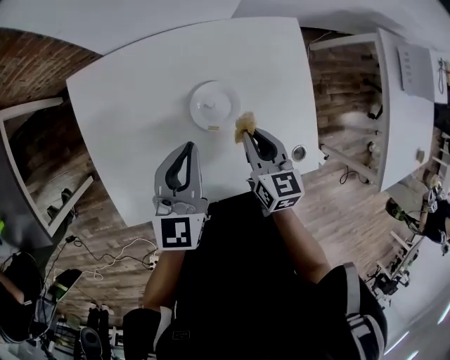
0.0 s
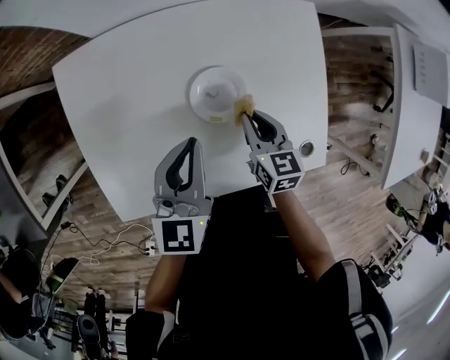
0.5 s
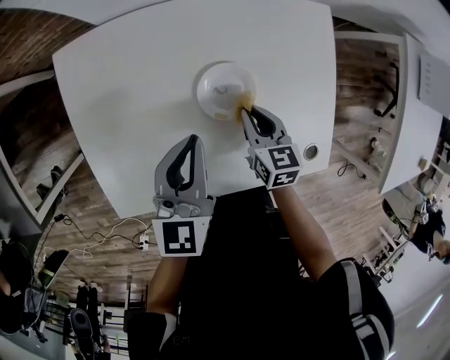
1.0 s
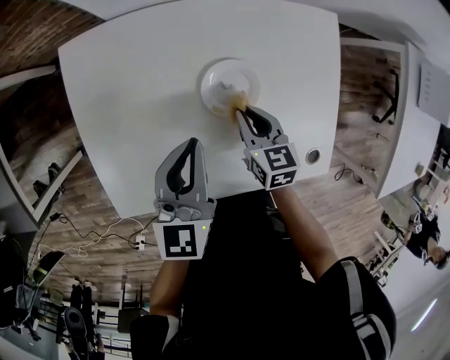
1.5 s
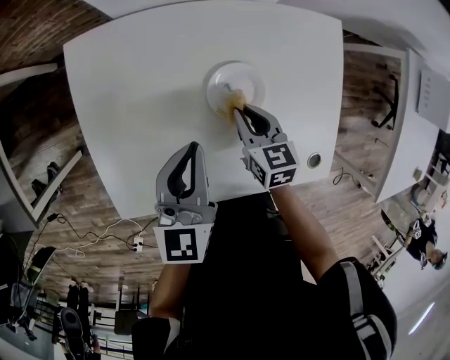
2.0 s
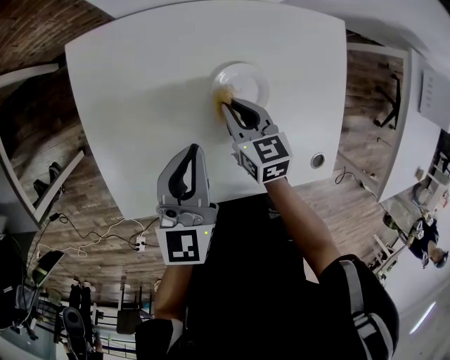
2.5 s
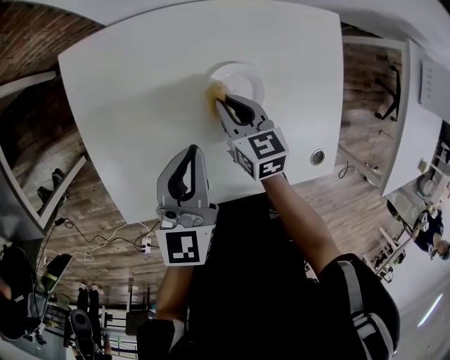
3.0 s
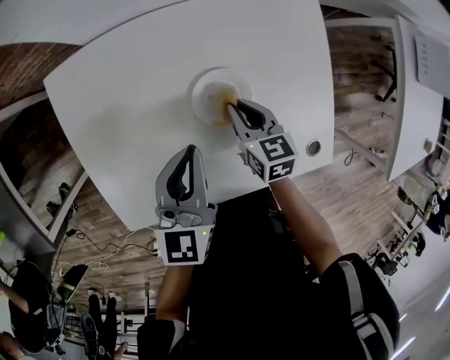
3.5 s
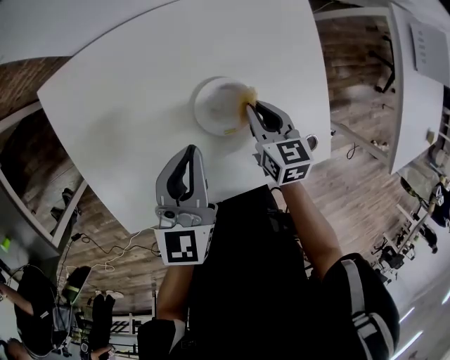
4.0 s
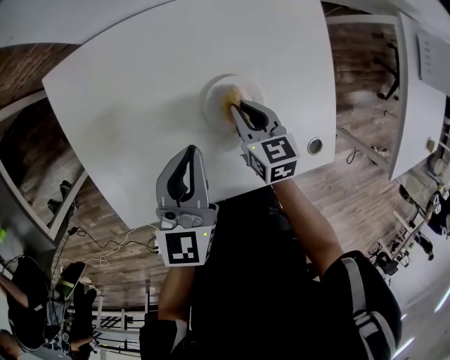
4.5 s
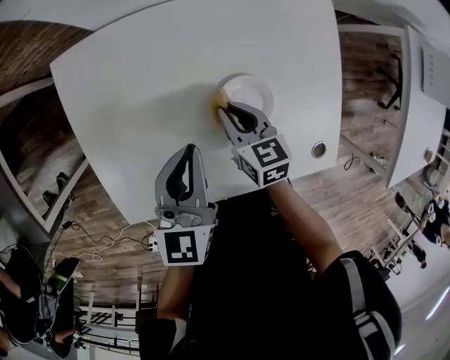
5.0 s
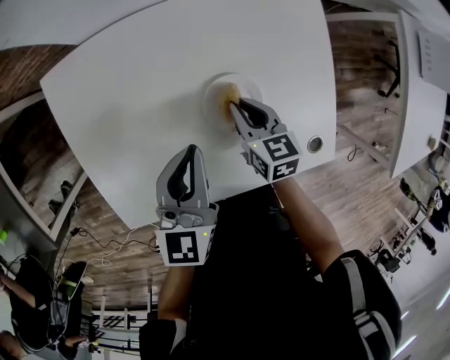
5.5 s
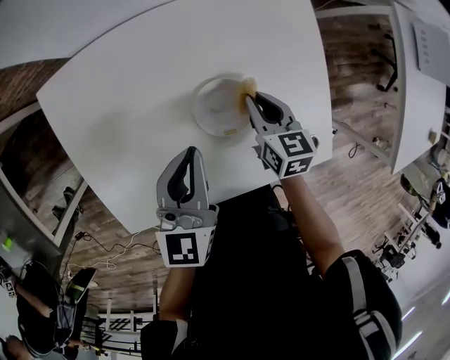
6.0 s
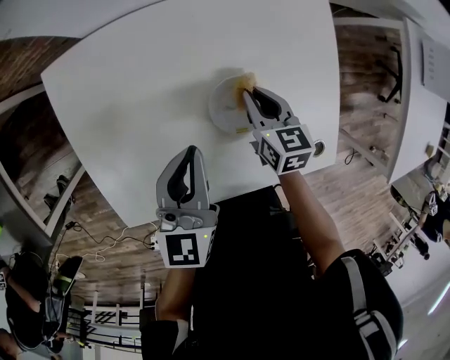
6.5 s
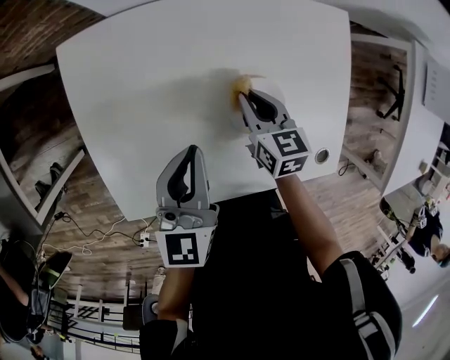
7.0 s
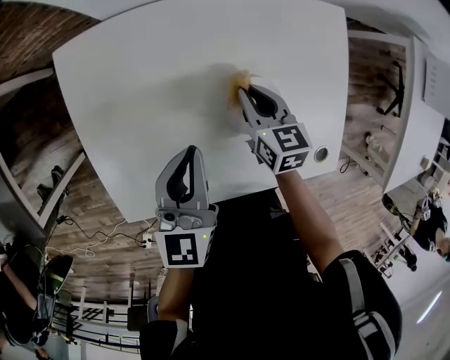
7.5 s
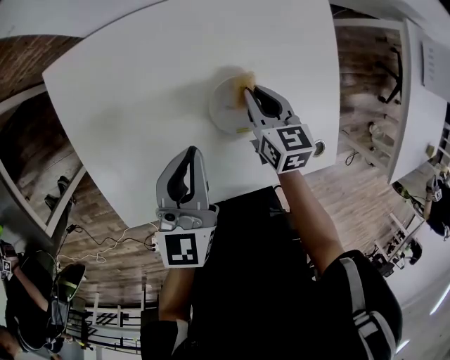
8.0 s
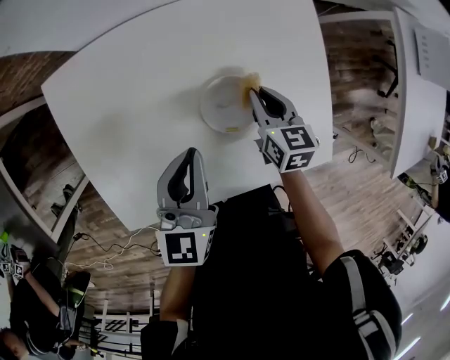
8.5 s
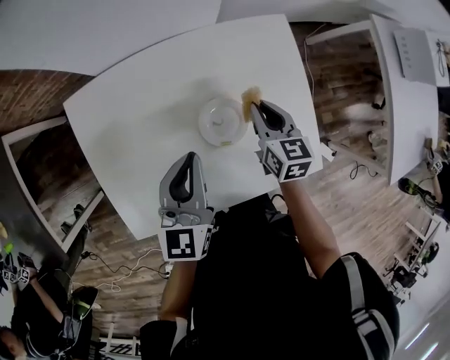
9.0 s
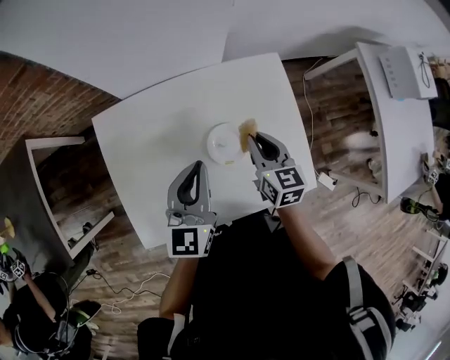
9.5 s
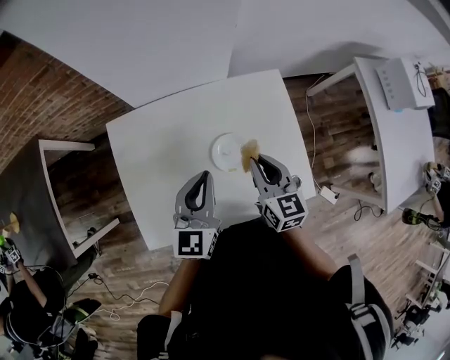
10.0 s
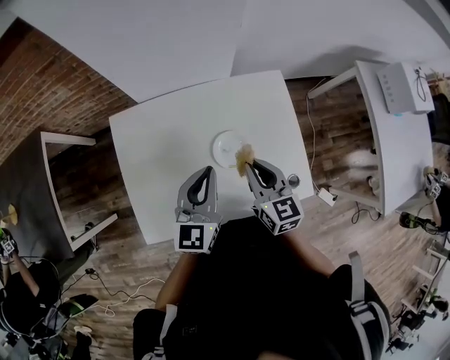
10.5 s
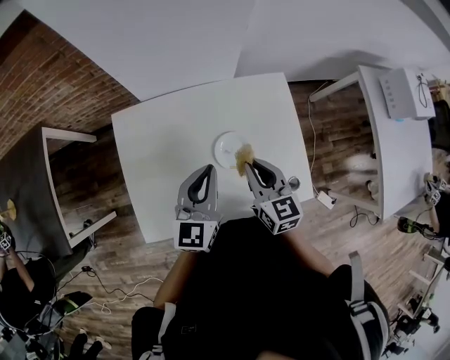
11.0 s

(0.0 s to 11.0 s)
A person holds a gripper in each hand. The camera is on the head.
0.0 s - 2.0 s: The left gripper ends up approximately 5 cm from where it was. The right gripper is displaced downward and to the left by approximately 10 cm.
2.0 s - 3.5 s: The grippers move only a little.
3.5 s - 5.5 s: The right gripper swings left and right, about 10 cm each way, with 2 reversals.
5.5 s - 7.5 s: The right gripper travels to the right and back again, some 5 cm each way. The left gripper is displaced to the left by roughly 5 cm.
7.5 s - 9.0 s: The left gripper goes about 10 cm to the right and upward. The right gripper shifts some 15 cm to the right and upward.
9.0 s - 11.0 s: The left gripper travels upward by about 10 cm. Meanwhile the right gripper heads upward, backward and to the left, covering approximately 20 cm.

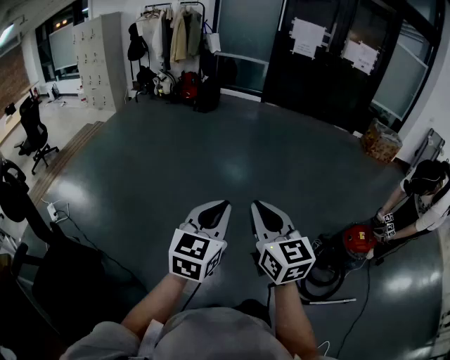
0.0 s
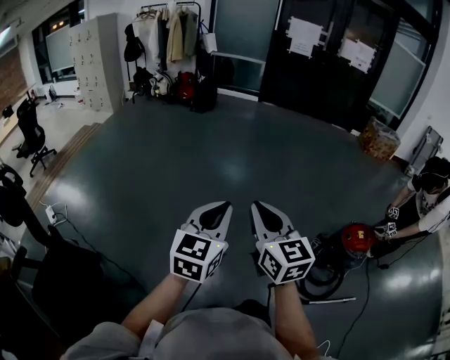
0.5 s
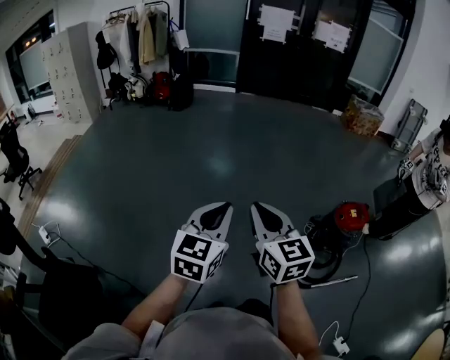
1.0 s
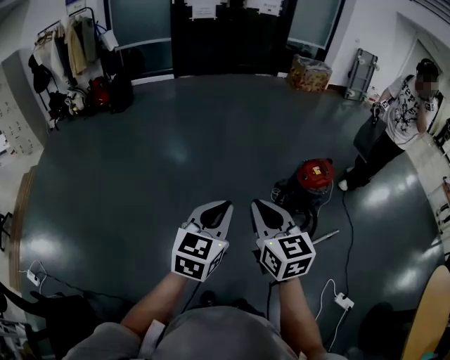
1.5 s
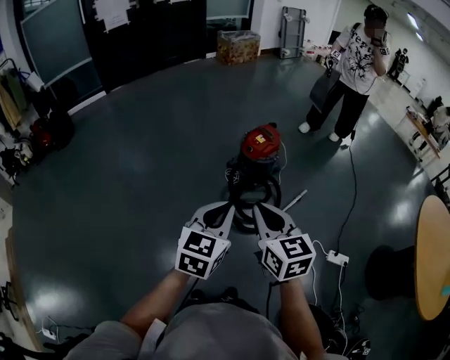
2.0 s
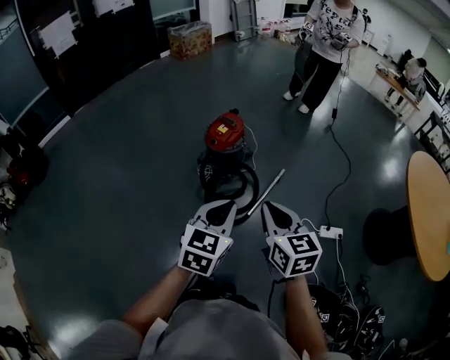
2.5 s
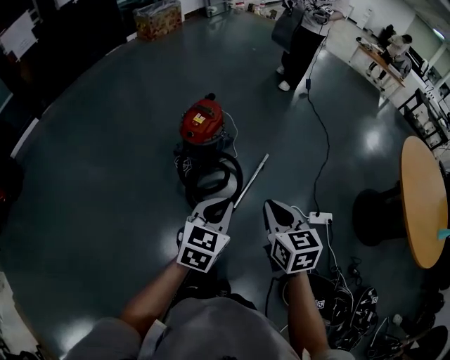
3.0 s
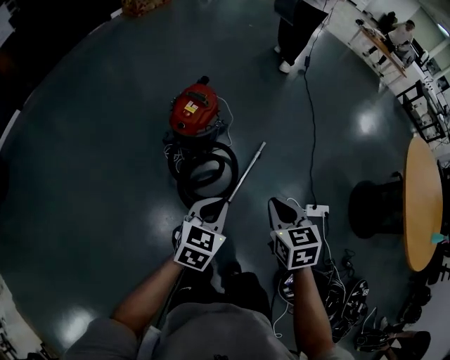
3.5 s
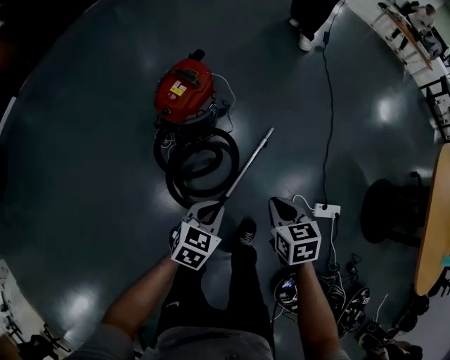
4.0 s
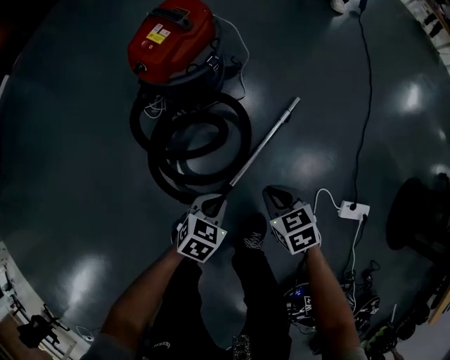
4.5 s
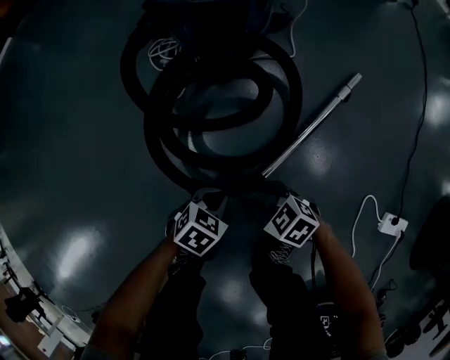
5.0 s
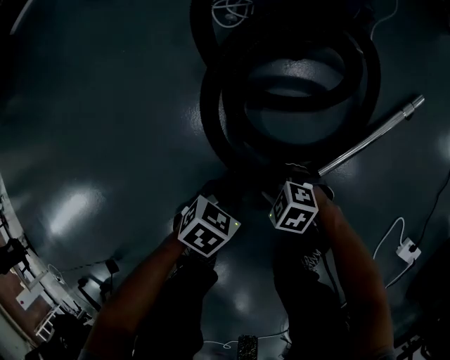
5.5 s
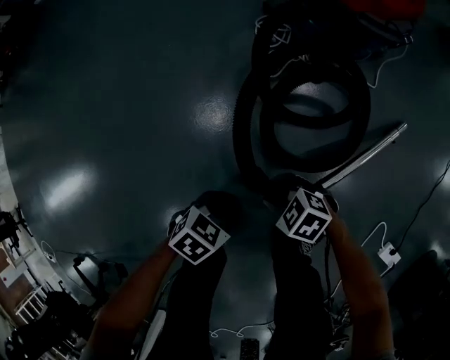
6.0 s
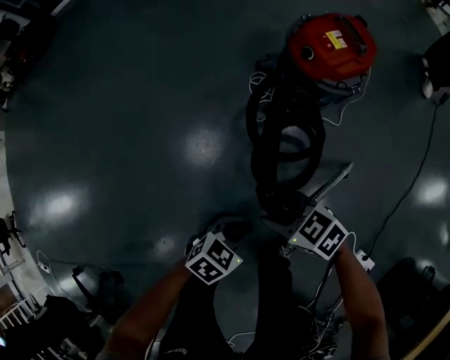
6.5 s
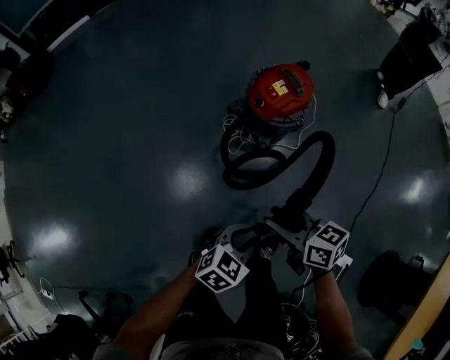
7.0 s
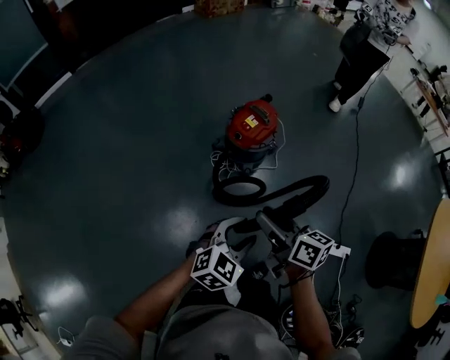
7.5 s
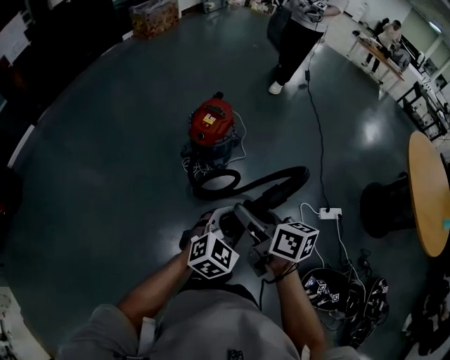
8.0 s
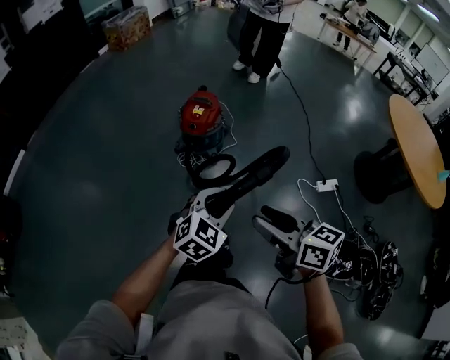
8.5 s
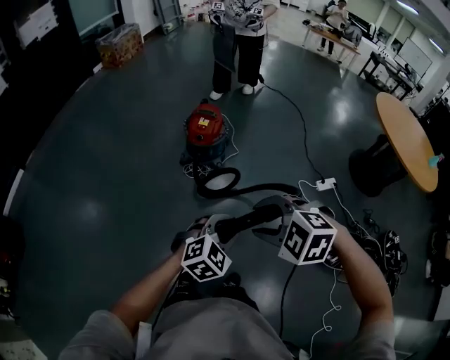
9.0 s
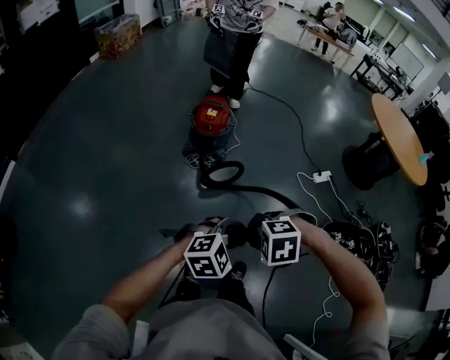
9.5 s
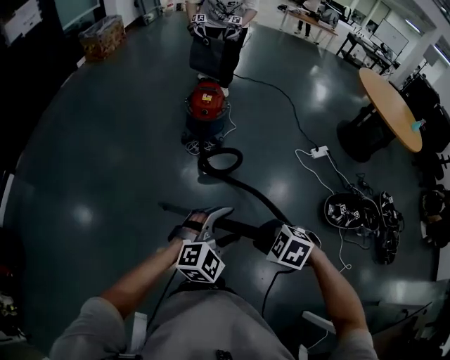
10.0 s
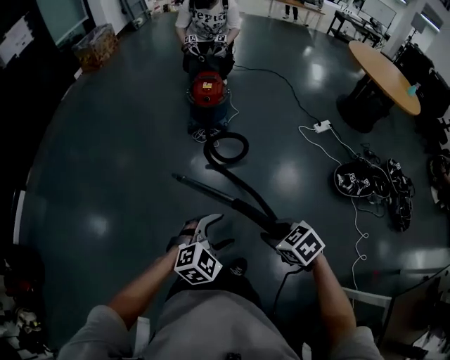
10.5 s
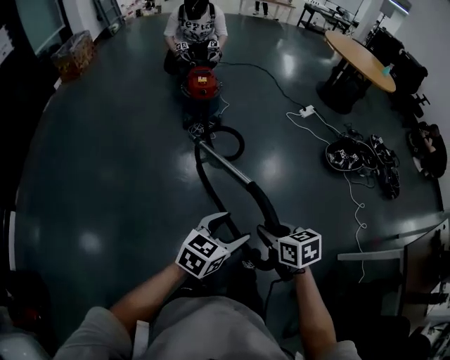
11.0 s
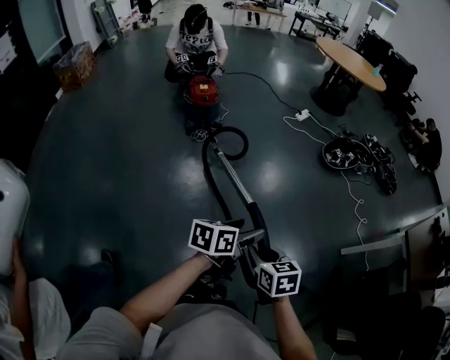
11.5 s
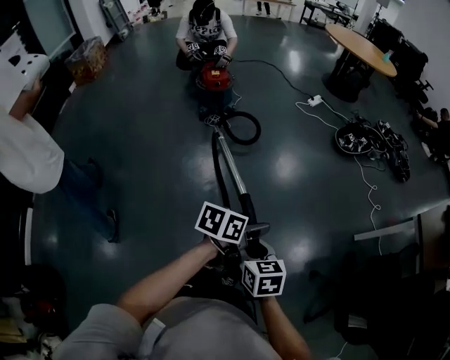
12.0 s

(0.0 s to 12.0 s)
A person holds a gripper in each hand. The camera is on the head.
0.0 s - 2.0 s: The pair of grippers is taken about 40 cm. The right gripper changes its angle by approximately 50 degrees; the left gripper changes its angle by roughly 50 degrees.
2.0 s - 4.0 s: The left gripper moves roughly 50 cm, and turns by approximately 40 degrees. Meanwhile the right gripper shifts by approximately 60 cm, and angles its fingers downward, by roughly 30 degrees.
4.0 s - 6.0 s: Both grippers move downward, about 50 cm. The right gripper changes its angle by some 90 degrees, and opens its fingers. Meanwhile the left gripper swivels approximately 30 degrees.
6.0 s - 8.0 s: The grippers both shift upward by roughly 70 cm. The left gripper rotates around the line of its fingers by some 50 degrees, clockwise from behind, and opens. The right gripper tips its fingers upward by some 40 degrees.
8.0 s - 10.0 s: The pair of grippers is taken about 40 cm. The left gripper rotates approximately 40 degrees, and opens up; the right gripper tips its fingers downward by roughly 50 degrees.
10.0 s - 12.0 s: Both grippers are carried about 50 cm. The left gripper twists about 70 degrees counterclockwise, seen from behind. The right gripper rotates around the line of its fingers by roughly 70 degrees, clockwise from behind.

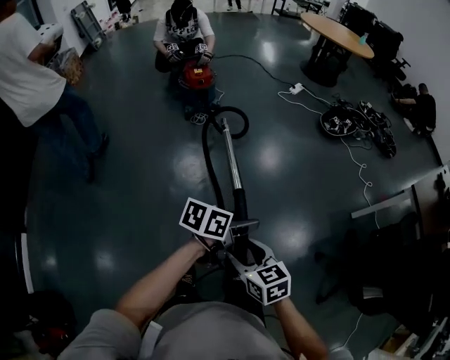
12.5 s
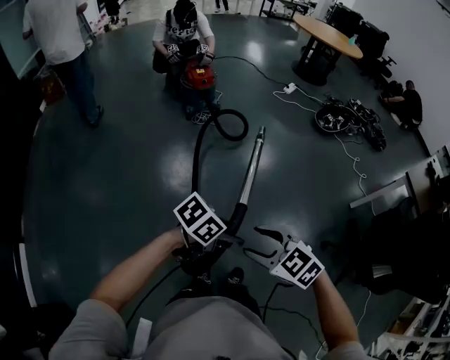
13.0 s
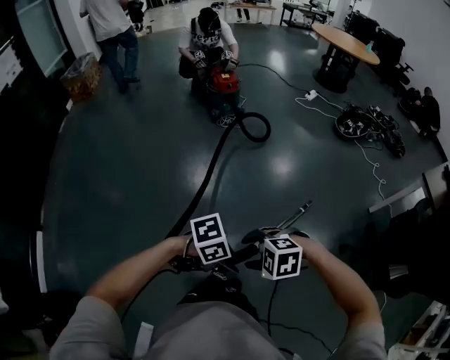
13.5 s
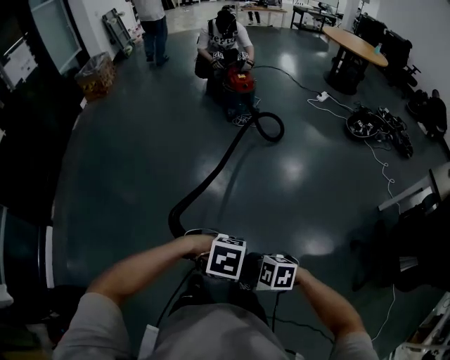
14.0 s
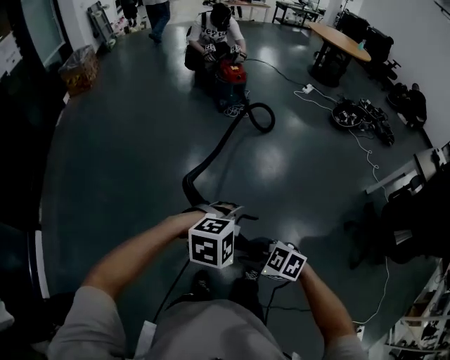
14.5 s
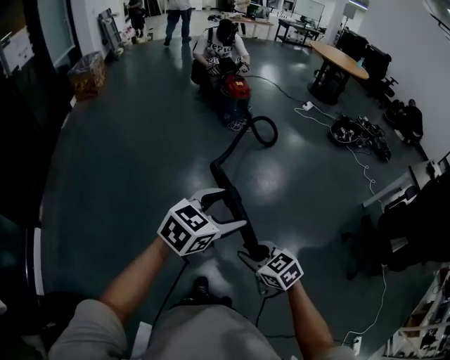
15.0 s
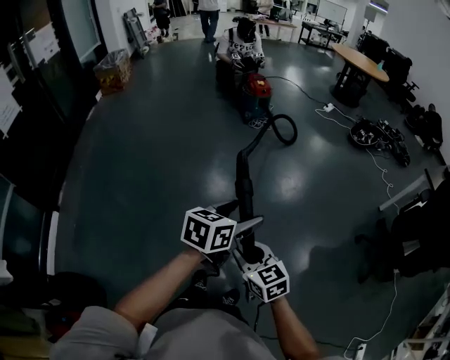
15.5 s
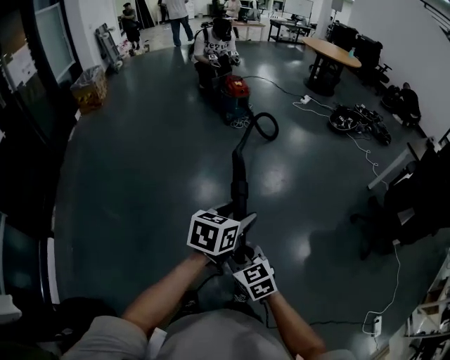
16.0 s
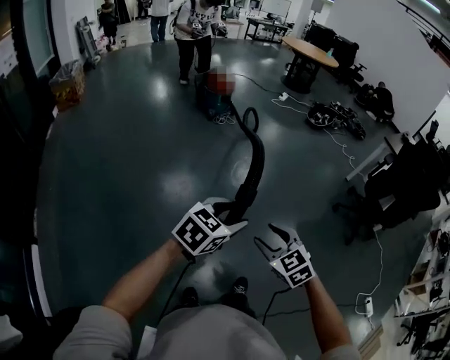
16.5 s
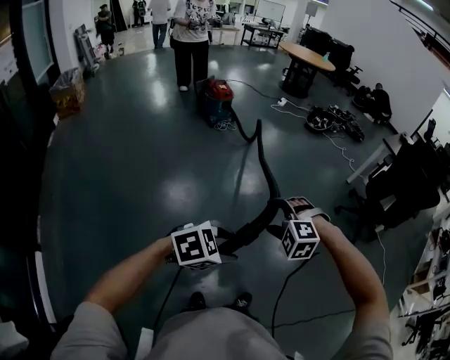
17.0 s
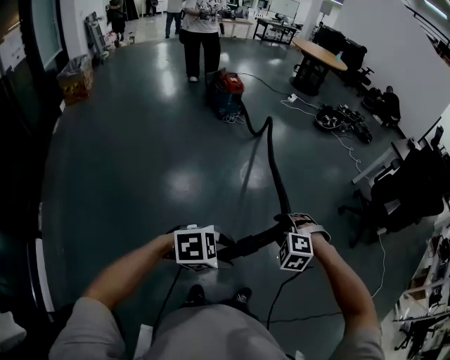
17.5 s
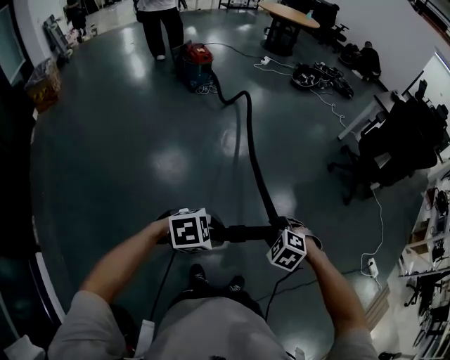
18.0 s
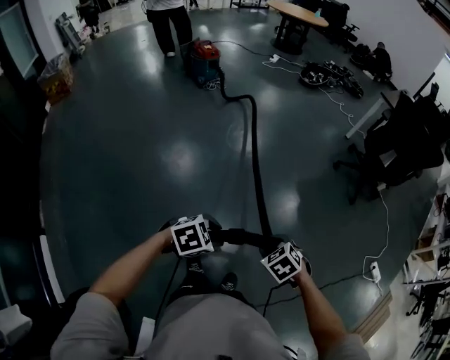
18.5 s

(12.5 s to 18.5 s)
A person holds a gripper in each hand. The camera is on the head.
12.5 s - 14.5 s: Both grippers are carried some 50 cm. The left gripper rolls clockwise, seen from behind, by some 80 degrees, while the right gripper swivels approximately 50 degrees, and closes.
14.5 s - 16.5 s: The right gripper shifts by about 20 cm, turns by roughly 50 degrees, and opens up. The left gripper ends up about 25 cm from where it was, turns by roughly 40 degrees, and closes up.
16.5 s - 18.5 s: The left gripper moves about 25 cm, and rotates approximately 40 degrees. The right gripper changes place by approximately 25 cm, and rotates some 30 degrees.
